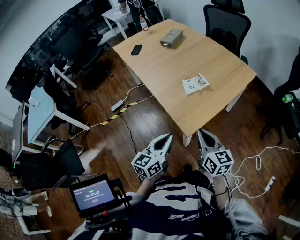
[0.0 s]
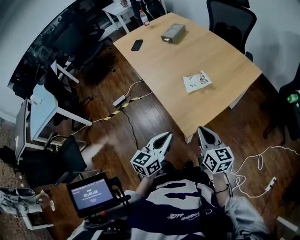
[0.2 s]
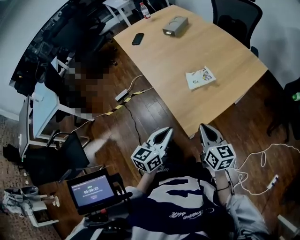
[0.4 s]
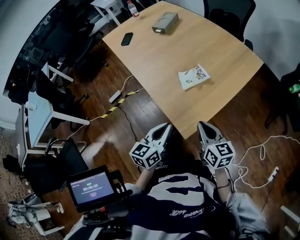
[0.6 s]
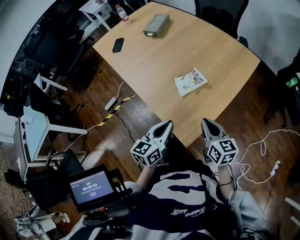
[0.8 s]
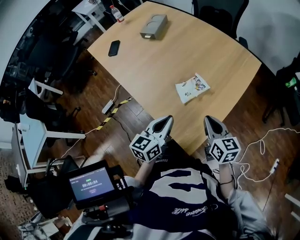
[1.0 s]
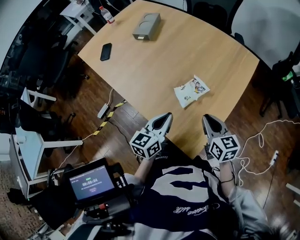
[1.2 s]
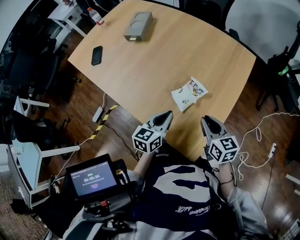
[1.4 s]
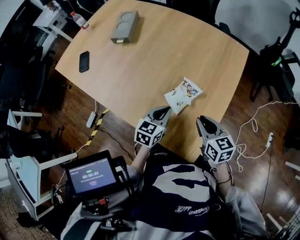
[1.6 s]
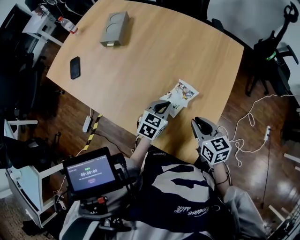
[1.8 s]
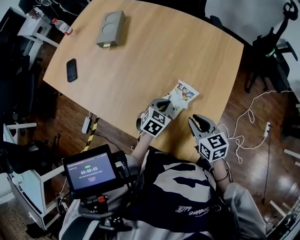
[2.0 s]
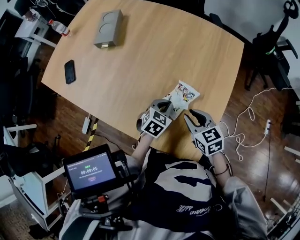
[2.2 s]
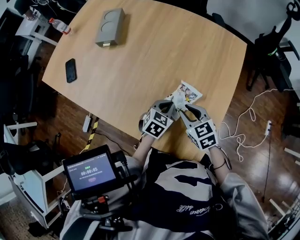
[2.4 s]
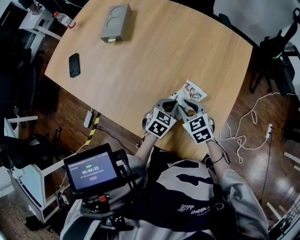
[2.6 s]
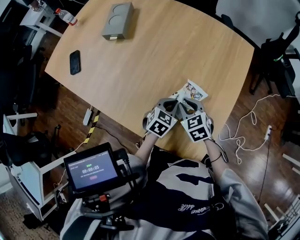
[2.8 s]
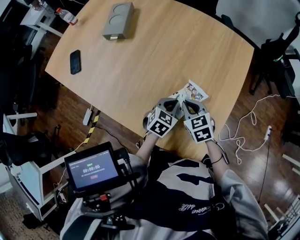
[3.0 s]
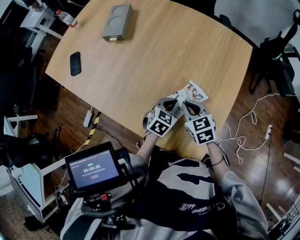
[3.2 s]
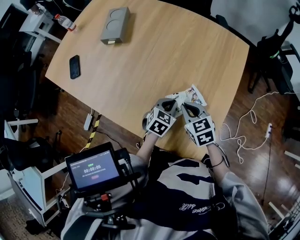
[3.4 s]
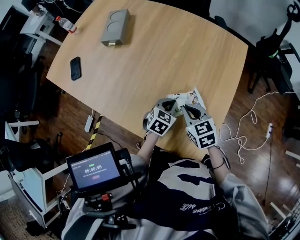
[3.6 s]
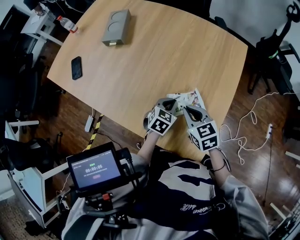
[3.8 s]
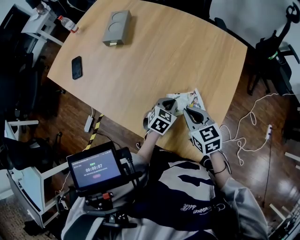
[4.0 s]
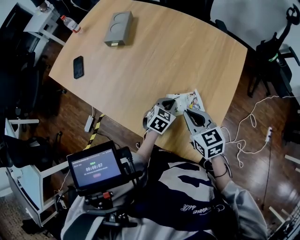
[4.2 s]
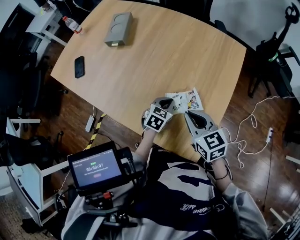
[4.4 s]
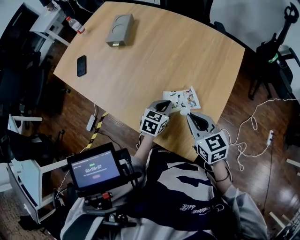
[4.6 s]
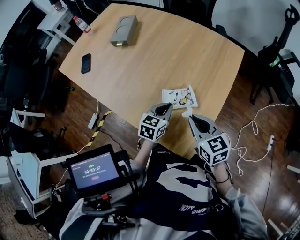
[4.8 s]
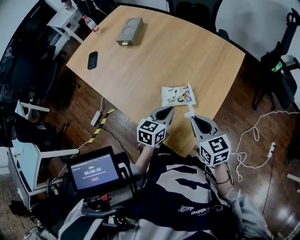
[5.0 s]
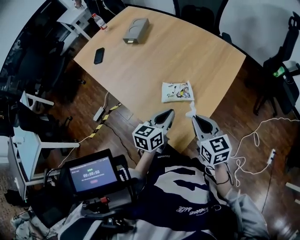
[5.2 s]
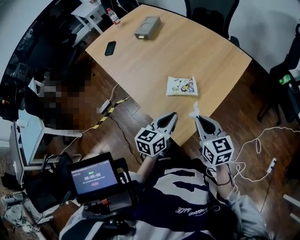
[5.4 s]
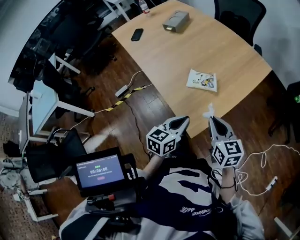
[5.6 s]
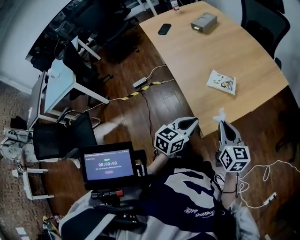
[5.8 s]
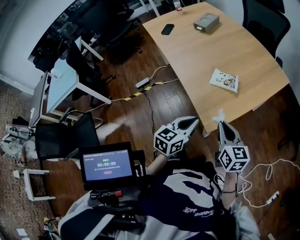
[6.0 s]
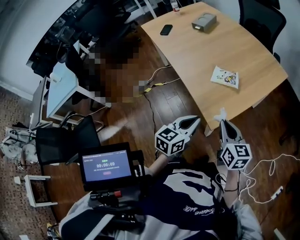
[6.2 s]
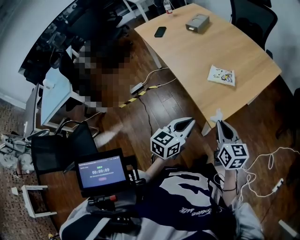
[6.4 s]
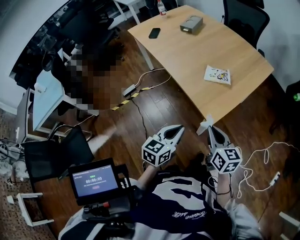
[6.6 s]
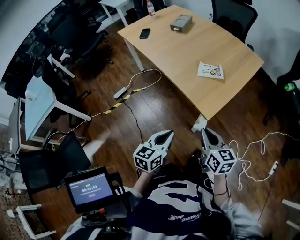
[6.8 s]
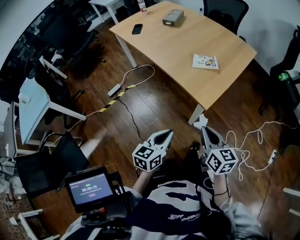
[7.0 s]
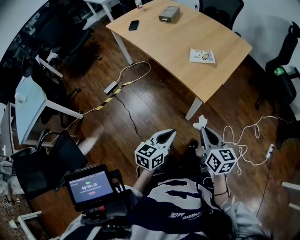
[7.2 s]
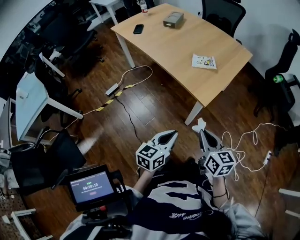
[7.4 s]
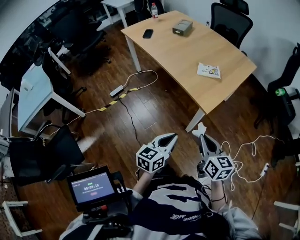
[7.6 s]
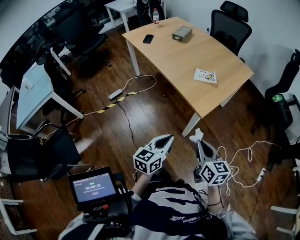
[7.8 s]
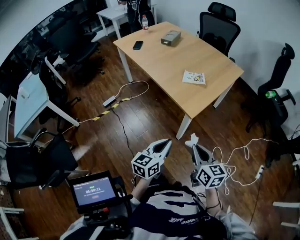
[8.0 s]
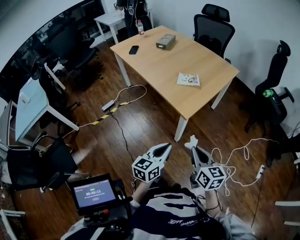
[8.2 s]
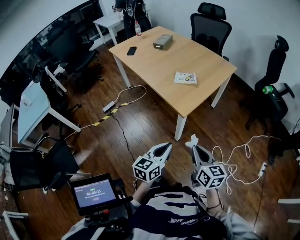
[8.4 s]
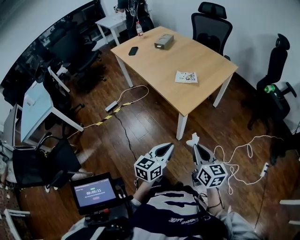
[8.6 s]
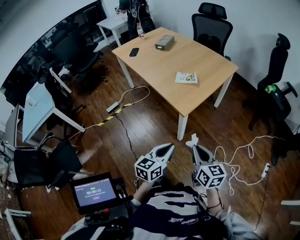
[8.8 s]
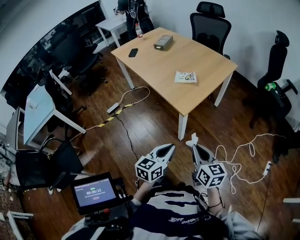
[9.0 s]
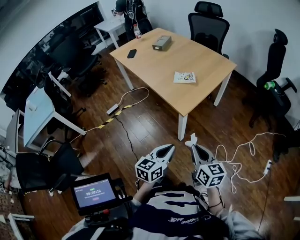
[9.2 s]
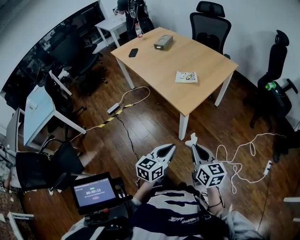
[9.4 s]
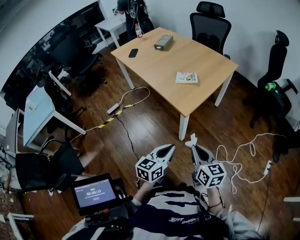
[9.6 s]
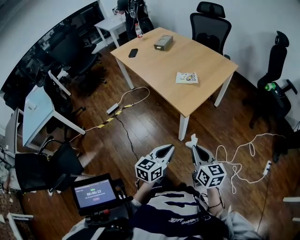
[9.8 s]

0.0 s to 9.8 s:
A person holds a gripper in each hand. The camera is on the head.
0.0 to 1.4 s: The two grippers go about 30 cm forward. The left gripper changes its angle by some 30 degrees, while the right gripper rotates about 20 degrees.
1.4 to 2.8 s: The left gripper shifts some 15 cm downward and forward, and changes its angle by about 30 degrees. Meanwhile the right gripper heads to the left, downward and forward, covering about 15 cm, and changes its angle by approximately 30 degrees.
2.8 to 4.2 s: The right gripper moves upward, roughly 10 cm.
4.2 to 5.6 s: The left gripper is displaced backward and upward by about 35 cm, and changes its angle by some 40 degrees. The right gripper travels backward and to the right by approximately 25 cm.
5.6 to 7.0 s: The grippers both shift backward and to the left by approximately 25 cm.
7.0 to 8.4 s: The left gripper travels to the right and backward by approximately 15 cm. The right gripper travels backward and to the right by about 15 cm.
8.4 to 9.8 s: There are only small adjustments of the grippers.

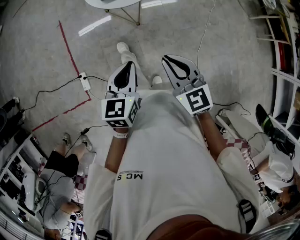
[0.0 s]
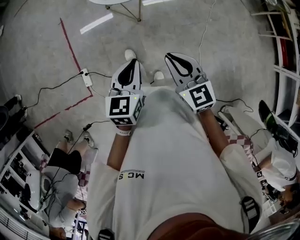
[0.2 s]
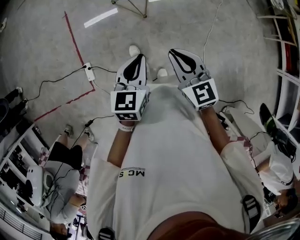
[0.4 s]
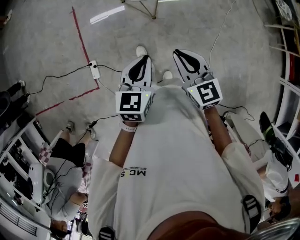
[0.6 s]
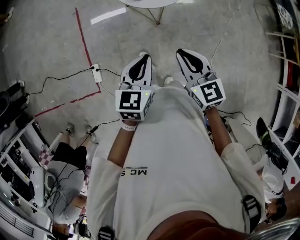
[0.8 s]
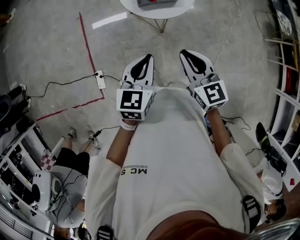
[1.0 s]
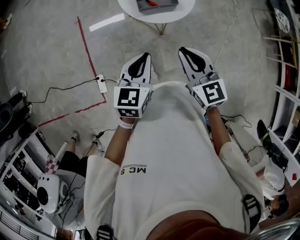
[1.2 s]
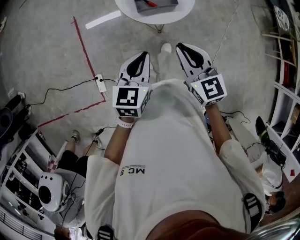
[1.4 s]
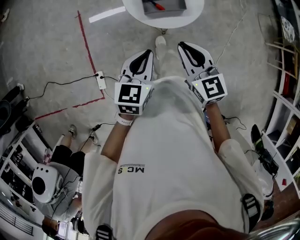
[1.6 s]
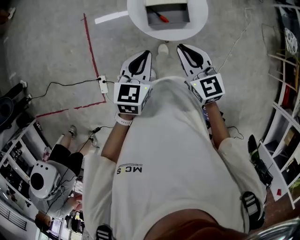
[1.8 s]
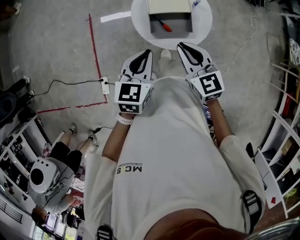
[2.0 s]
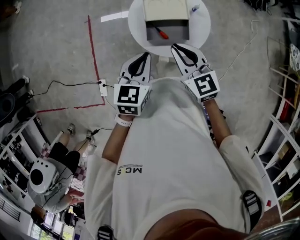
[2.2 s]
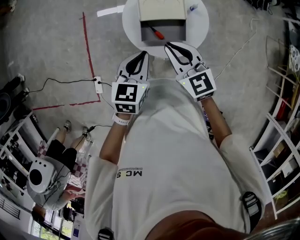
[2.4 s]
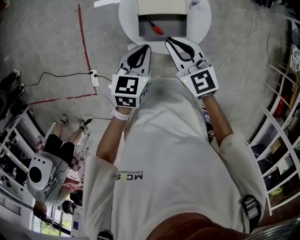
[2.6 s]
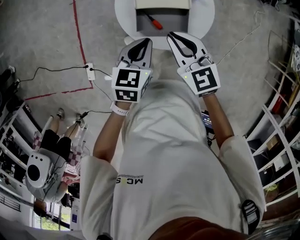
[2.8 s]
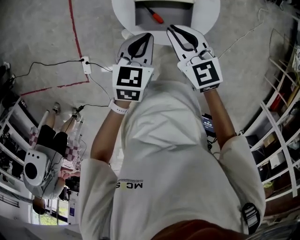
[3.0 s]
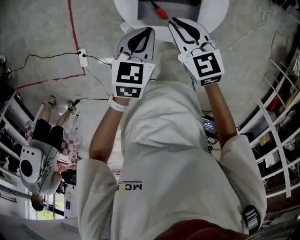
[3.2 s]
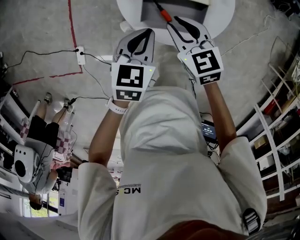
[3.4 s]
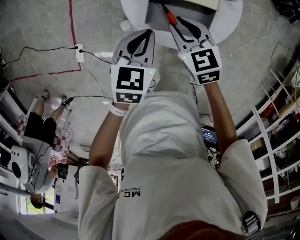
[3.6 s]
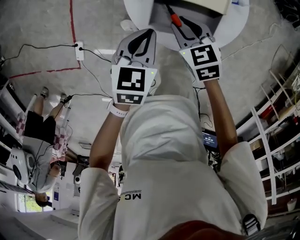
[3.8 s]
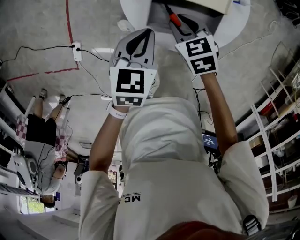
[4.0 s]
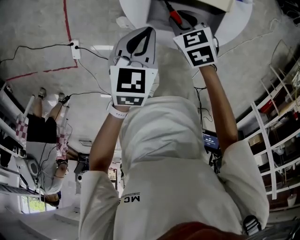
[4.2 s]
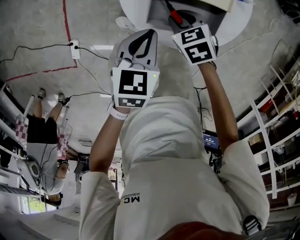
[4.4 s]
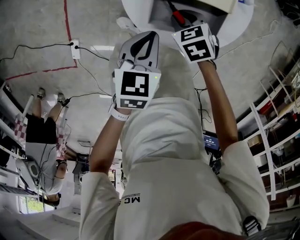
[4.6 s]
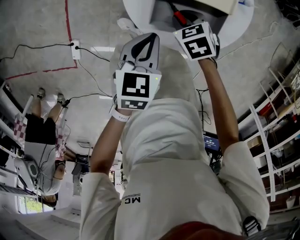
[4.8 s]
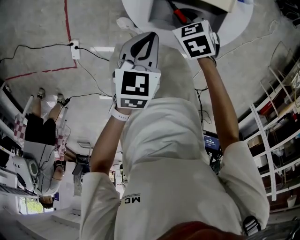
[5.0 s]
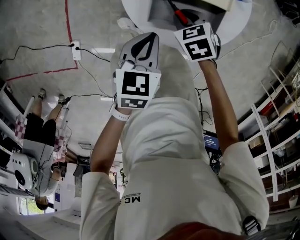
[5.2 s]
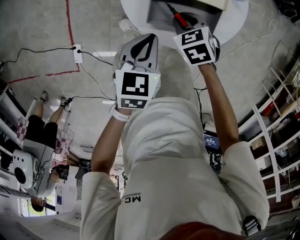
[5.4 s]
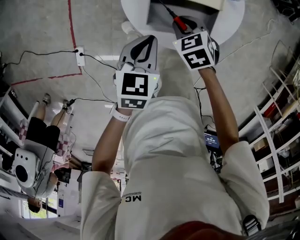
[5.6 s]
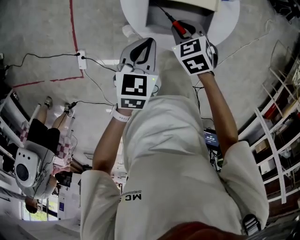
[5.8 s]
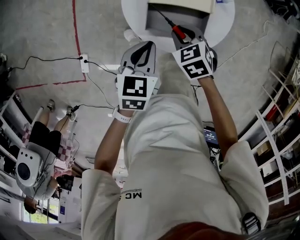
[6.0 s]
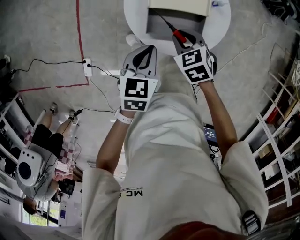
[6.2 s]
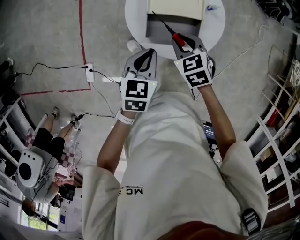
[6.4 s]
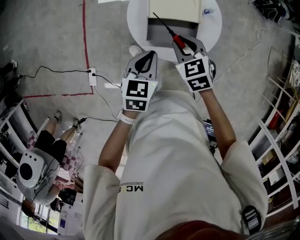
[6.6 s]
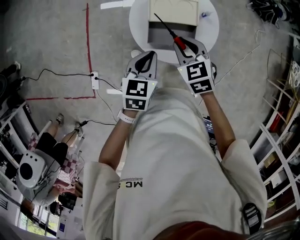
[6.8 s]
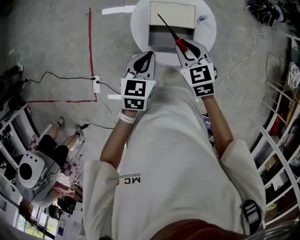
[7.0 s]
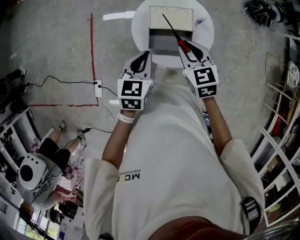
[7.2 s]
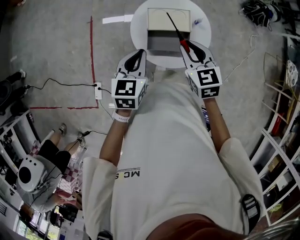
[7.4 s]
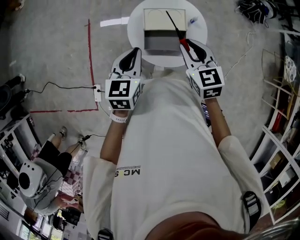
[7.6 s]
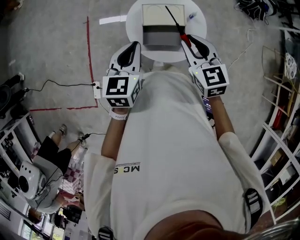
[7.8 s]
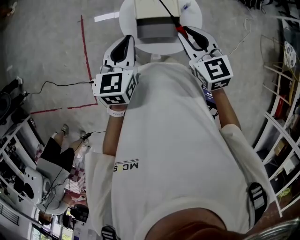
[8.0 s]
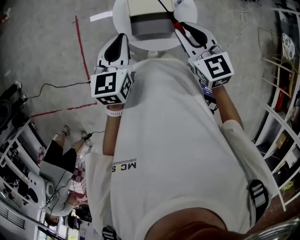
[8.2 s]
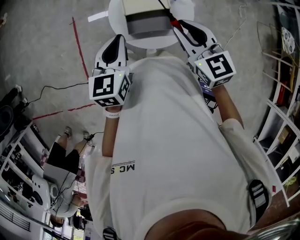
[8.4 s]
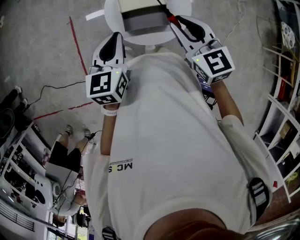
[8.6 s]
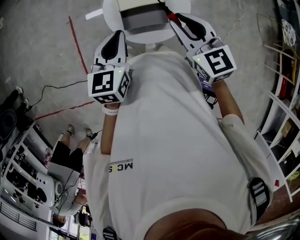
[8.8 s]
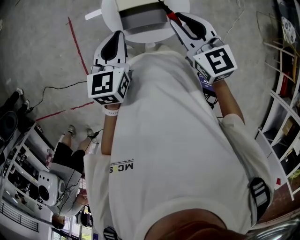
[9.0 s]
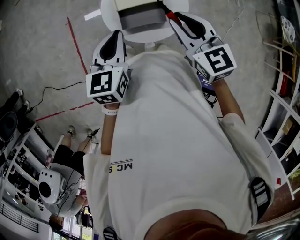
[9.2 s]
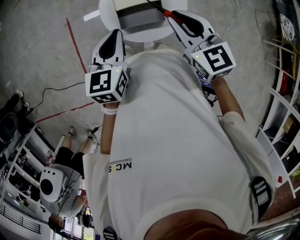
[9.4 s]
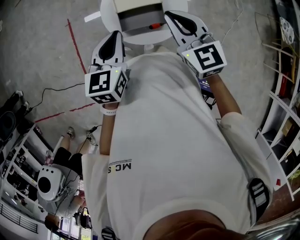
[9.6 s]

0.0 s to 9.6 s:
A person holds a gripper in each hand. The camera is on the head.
0.0 to 1.6 s: Both grippers move forward and to the left, approximately 30 cm.
1.6 to 3.2 s: Both grippers move forward and downward, roughly 25 cm. The right gripper changes its angle by approximately 20 degrees.
3.2 to 4.8 s: The left gripper heads downward, covering roughly 10 cm, while the right gripper moves downward, about 20 cm, and tips its fingers downward by roughly 30 degrees.
4.8 to 6.4 s: The left gripper travels upward by some 10 cm. Meanwhile the right gripper goes about 15 cm upward.
6.4 to 8.0 s: The grippers both shift upward by some 20 cm. The right gripper turns by some 30 degrees, while the left gripper rotates approximately 20 degrees.
8.0 to 9.6 s: The left gripper moves about 5 cm.

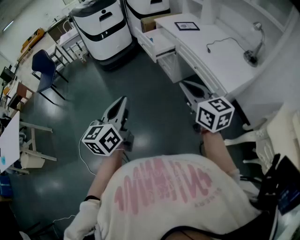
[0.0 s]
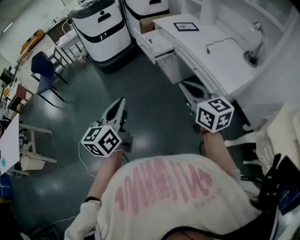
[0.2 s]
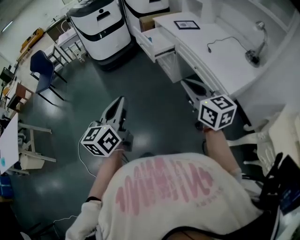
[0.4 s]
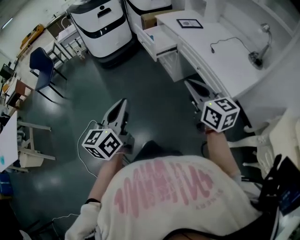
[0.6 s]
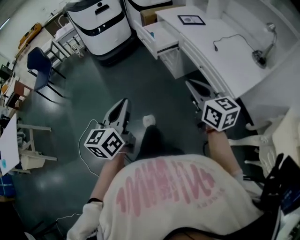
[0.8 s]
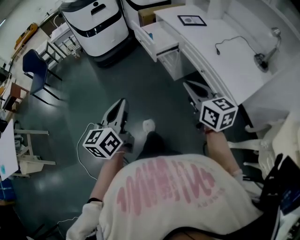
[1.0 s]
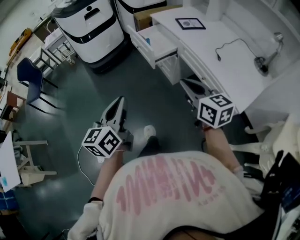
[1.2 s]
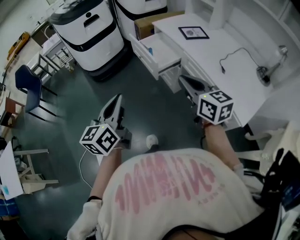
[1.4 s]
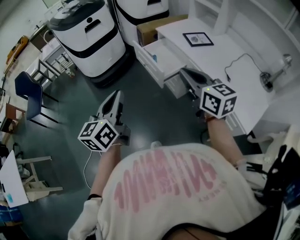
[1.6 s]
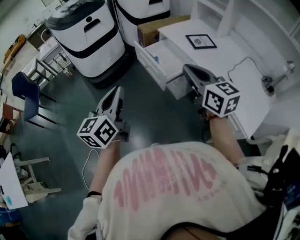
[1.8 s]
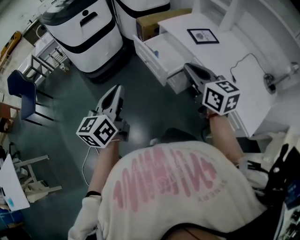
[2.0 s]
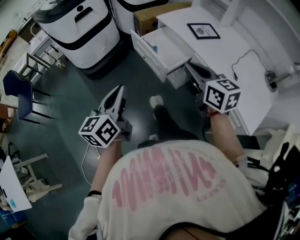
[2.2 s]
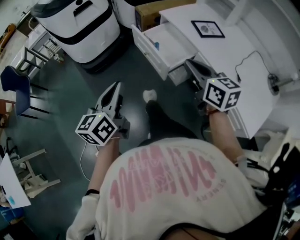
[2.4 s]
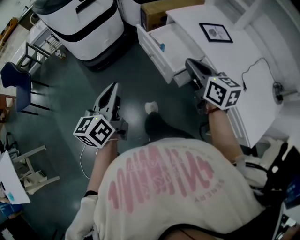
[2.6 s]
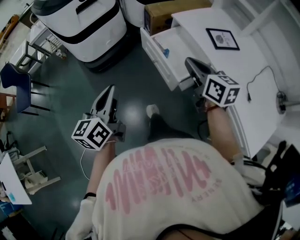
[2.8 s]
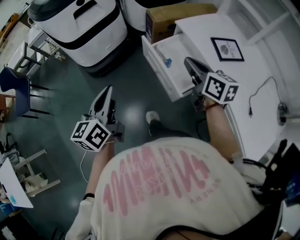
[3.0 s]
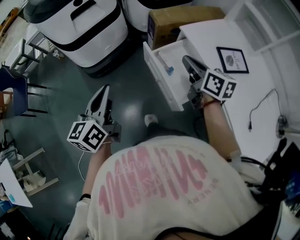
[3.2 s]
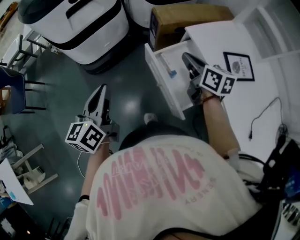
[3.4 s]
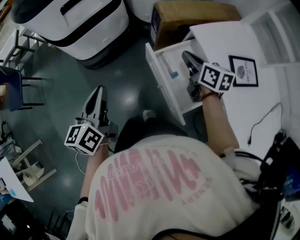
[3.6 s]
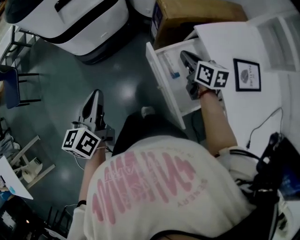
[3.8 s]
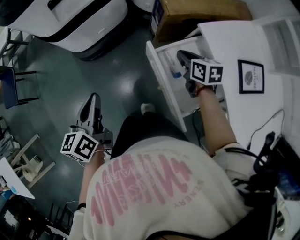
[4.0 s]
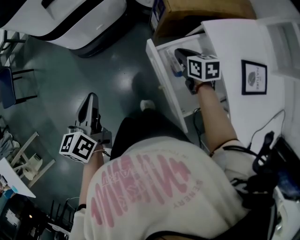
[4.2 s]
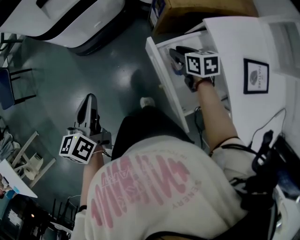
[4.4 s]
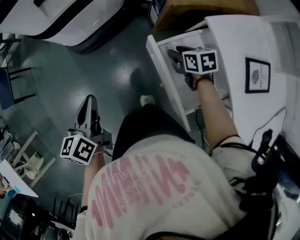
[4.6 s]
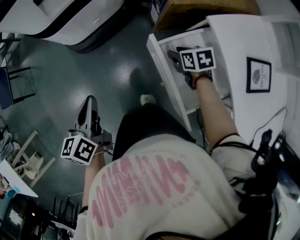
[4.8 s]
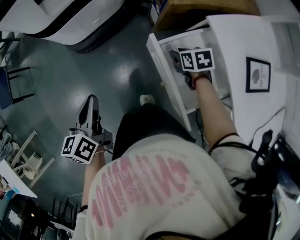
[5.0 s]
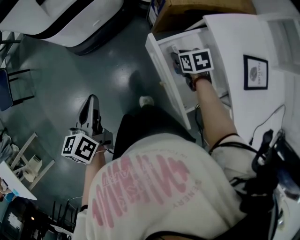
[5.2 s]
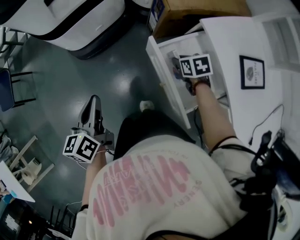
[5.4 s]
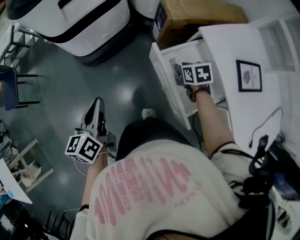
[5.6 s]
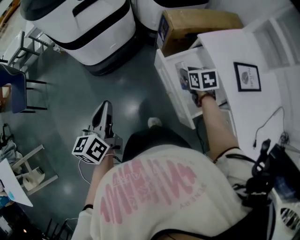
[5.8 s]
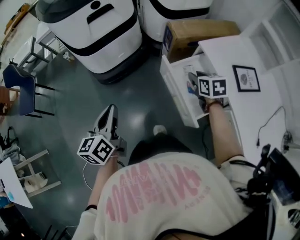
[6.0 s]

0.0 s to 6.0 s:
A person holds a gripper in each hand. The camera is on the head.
0.0 to 1.6 s: The grippers both shift forward by about 35 cm.
1.6 to 3.0 s: The right gripper is displaced forward and downward by about 35 cm. The left gripper is displaced forward by approximately 25 cm.
3.0 to 4.4 s: The right gripper is displaced downward and forward by roughly 35 cm, tips its fingers downward by some 30 degrees, and opens up. The left gripper travels forward and downward by some 20 cm, and swivels approximately 20 degrees.
4.4 to 6.0 s: The two grippers go approximately 15 cm upward and backward.
